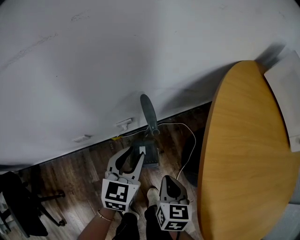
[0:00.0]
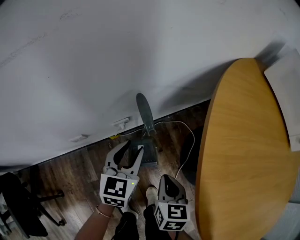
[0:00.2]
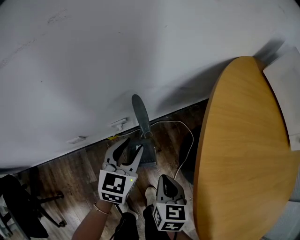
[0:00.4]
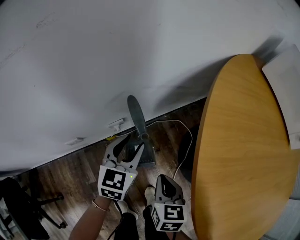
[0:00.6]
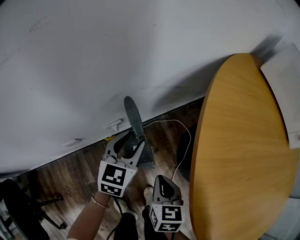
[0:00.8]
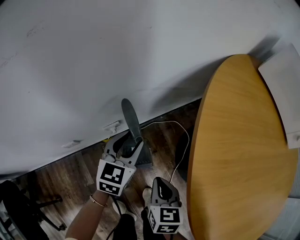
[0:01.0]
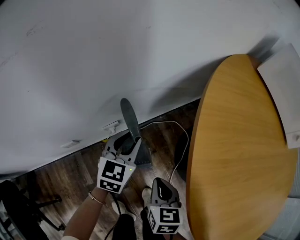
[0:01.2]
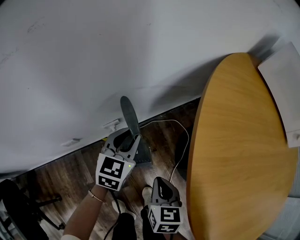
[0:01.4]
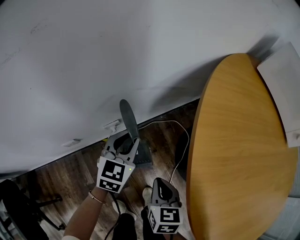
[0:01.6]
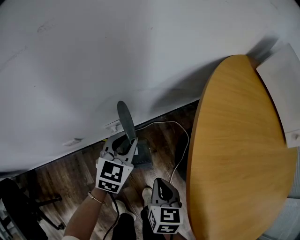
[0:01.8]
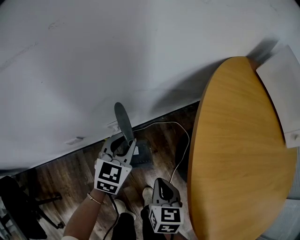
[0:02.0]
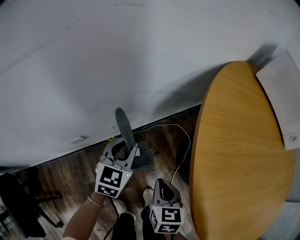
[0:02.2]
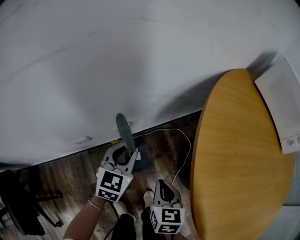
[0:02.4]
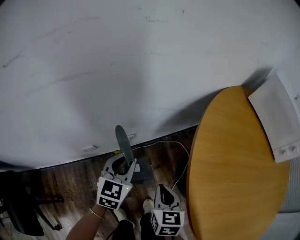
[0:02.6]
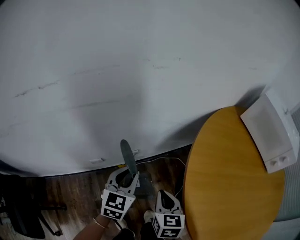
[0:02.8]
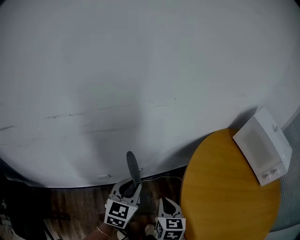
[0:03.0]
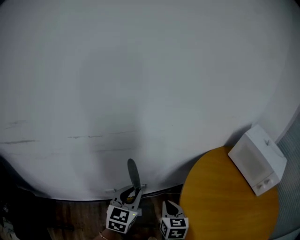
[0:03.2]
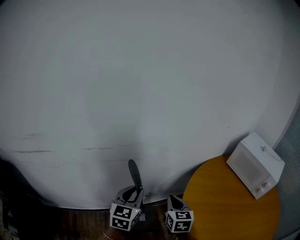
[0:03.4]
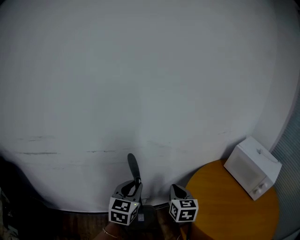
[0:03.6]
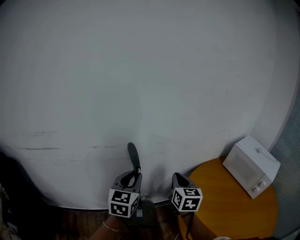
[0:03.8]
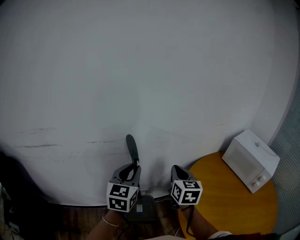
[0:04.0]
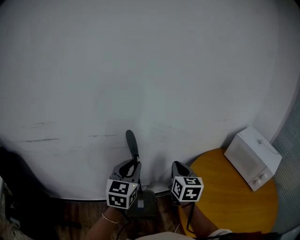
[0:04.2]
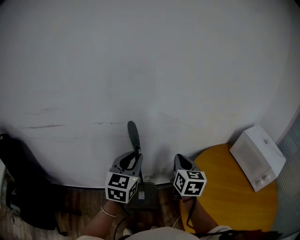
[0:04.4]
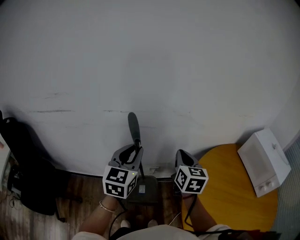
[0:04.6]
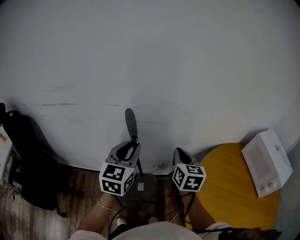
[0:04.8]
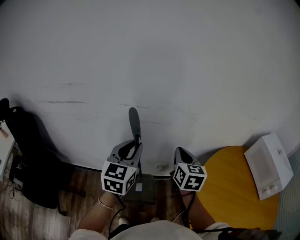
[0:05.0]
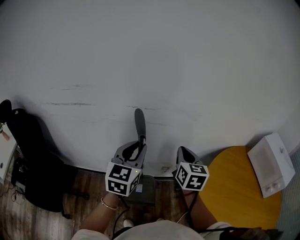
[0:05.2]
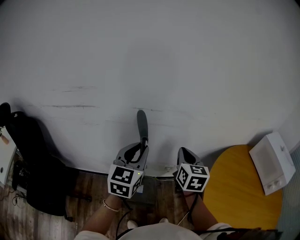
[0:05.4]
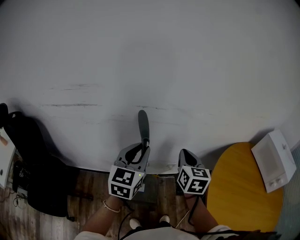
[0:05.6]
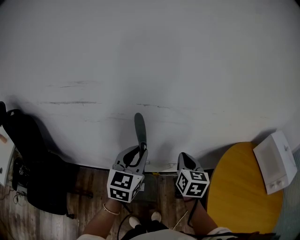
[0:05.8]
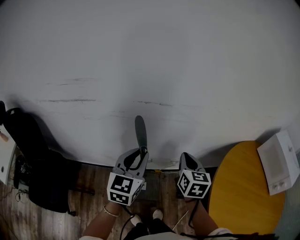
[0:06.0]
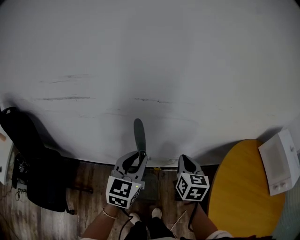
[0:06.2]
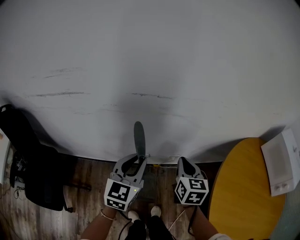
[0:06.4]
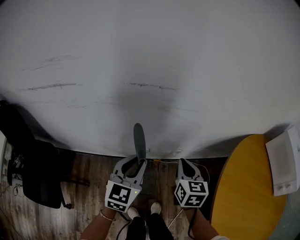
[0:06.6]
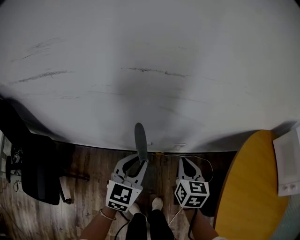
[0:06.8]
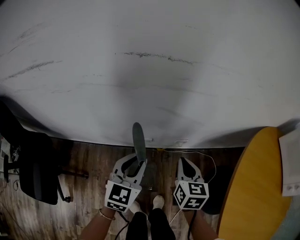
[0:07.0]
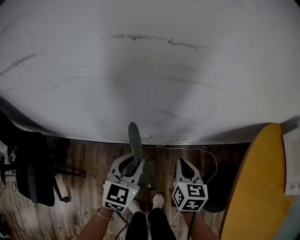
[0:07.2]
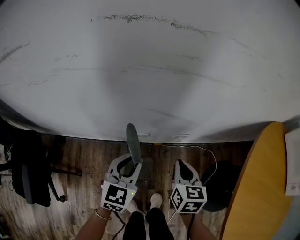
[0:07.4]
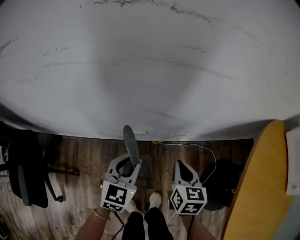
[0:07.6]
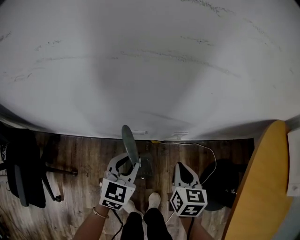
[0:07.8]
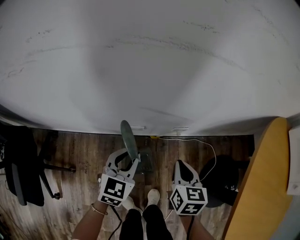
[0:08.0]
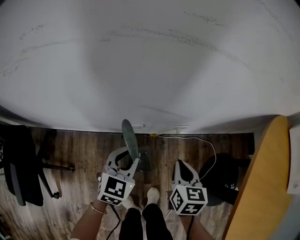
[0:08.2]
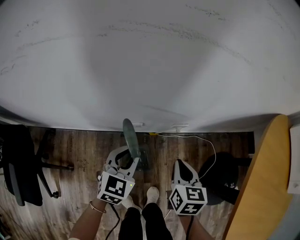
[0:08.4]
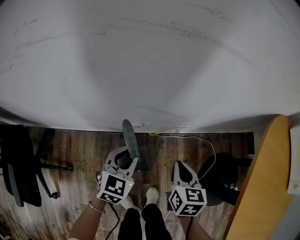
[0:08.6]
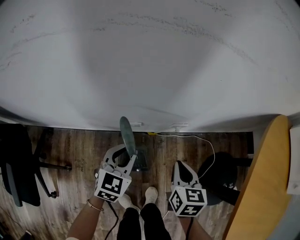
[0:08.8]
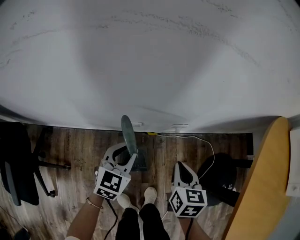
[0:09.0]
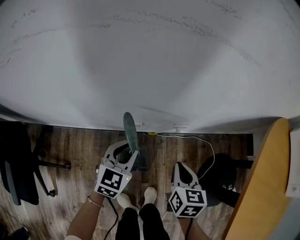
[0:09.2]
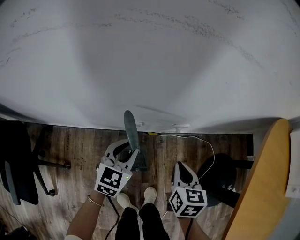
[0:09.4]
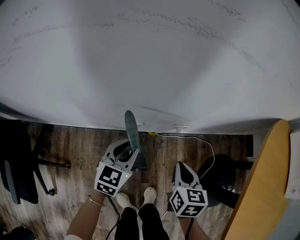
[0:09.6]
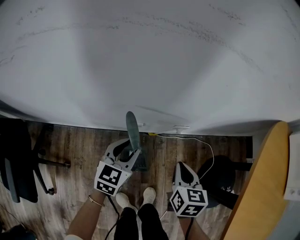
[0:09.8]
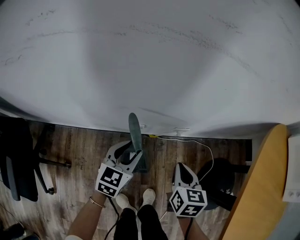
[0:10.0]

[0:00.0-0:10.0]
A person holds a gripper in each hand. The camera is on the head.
0:00.0 to 0:01.4: The left gripper goes approximately 10 cm forward.
0:01.4 to 0:02.8: The left gripper is displaced upward and backward by approximately 20 cm. The right gripper travels upward by approximately 15 cm.
0:02.8 to 0:04.2: The two grippers go roughly 30 cm upward. The right gripper rotates some 20 degrees. Meanwhile the left gripper turns by roughly 20 degrees.
0:04.2 to 0:05.8: The two grippers go approximately 20 cm to the left.
0:05.8 to 0:07.2: Both grippers travel together downward, roughly 25 cm.
0:07.2 to 0:08.6: The grippers both shift downward by about 10 cm.
0:08.6 to 0:10.0: The left gripper opens.

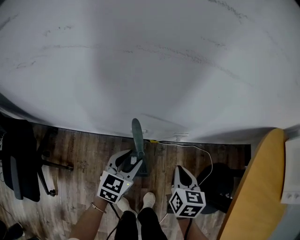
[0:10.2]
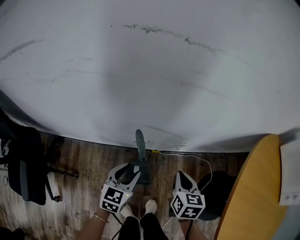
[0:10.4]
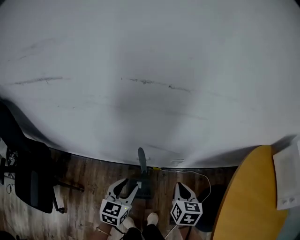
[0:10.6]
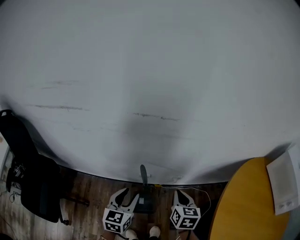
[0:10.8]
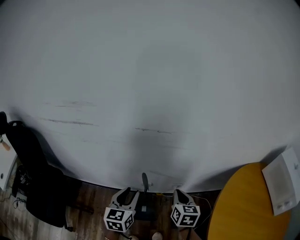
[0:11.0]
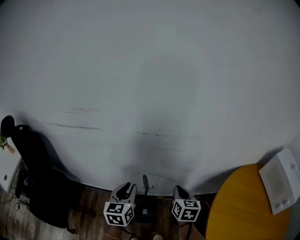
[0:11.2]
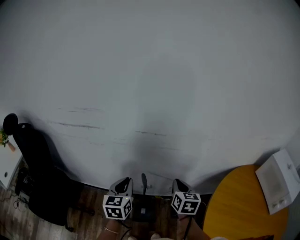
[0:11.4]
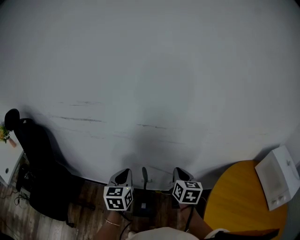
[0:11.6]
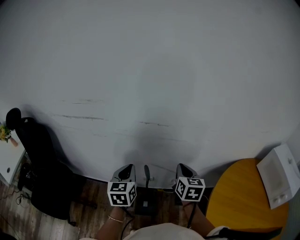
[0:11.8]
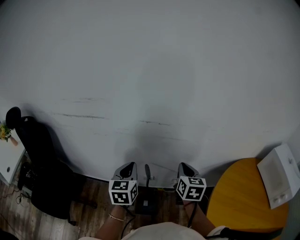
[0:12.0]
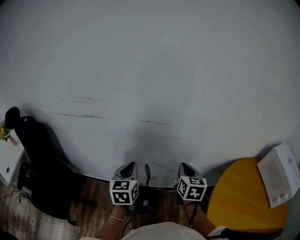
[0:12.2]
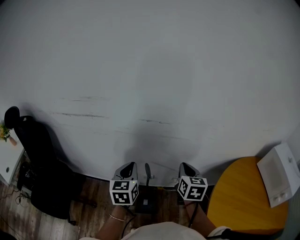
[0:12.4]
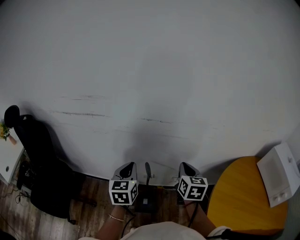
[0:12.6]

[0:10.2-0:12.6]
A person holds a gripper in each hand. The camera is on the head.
0:10.2 to 0:11.4: The grippers both shift upward by roughly 30 cm. The left gripper turns by roughly 30 degrees, and closes.
0:11.4 to 0:12.6: The grippers stay close to where they were, moving slightly.

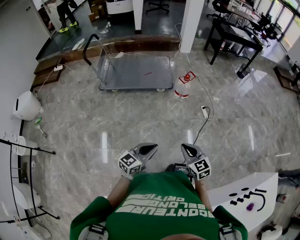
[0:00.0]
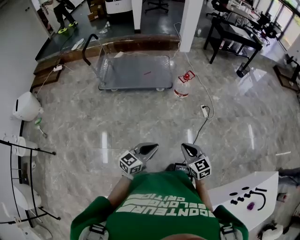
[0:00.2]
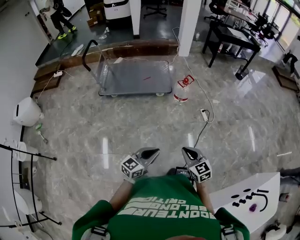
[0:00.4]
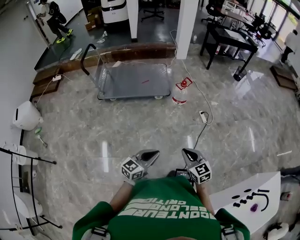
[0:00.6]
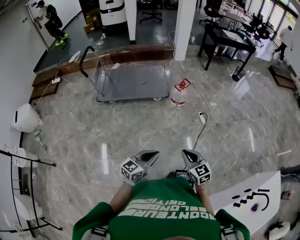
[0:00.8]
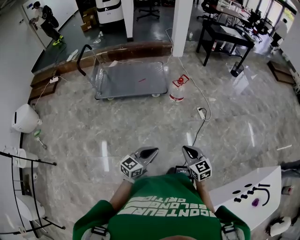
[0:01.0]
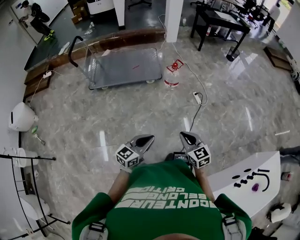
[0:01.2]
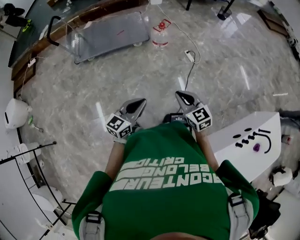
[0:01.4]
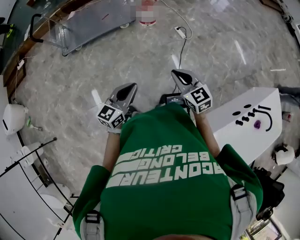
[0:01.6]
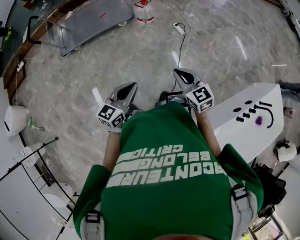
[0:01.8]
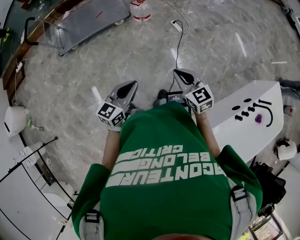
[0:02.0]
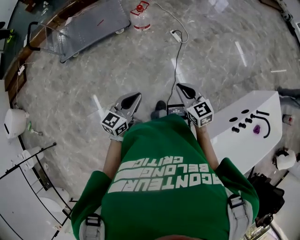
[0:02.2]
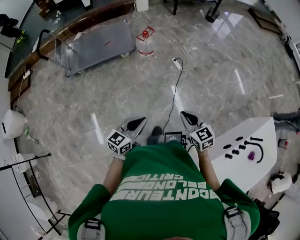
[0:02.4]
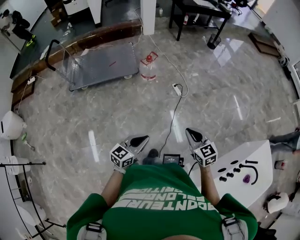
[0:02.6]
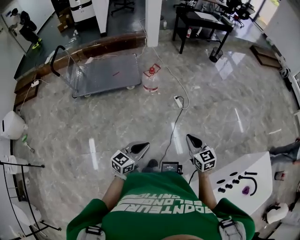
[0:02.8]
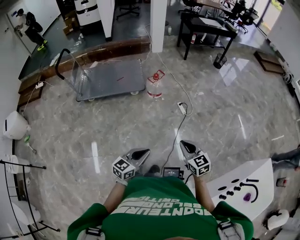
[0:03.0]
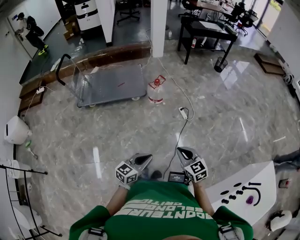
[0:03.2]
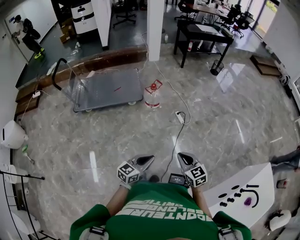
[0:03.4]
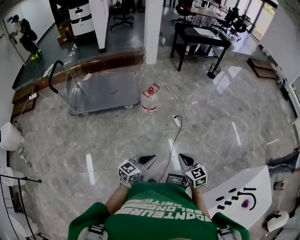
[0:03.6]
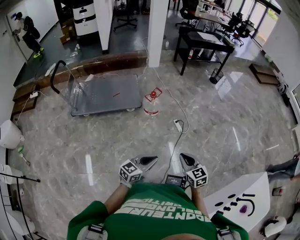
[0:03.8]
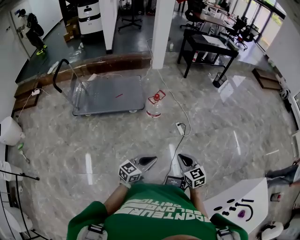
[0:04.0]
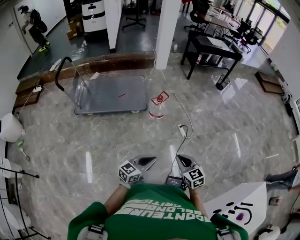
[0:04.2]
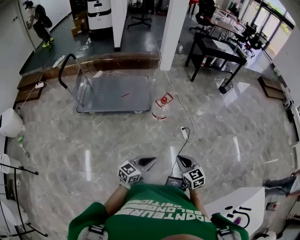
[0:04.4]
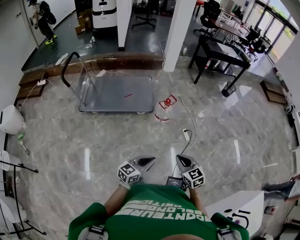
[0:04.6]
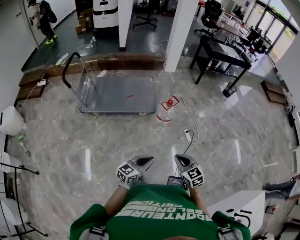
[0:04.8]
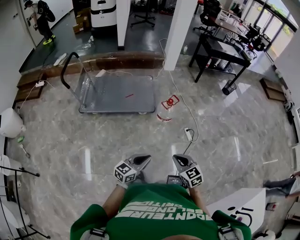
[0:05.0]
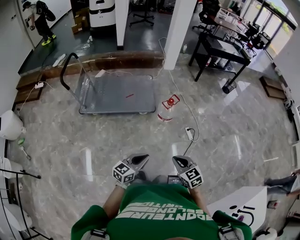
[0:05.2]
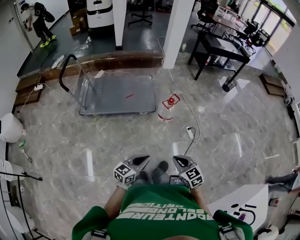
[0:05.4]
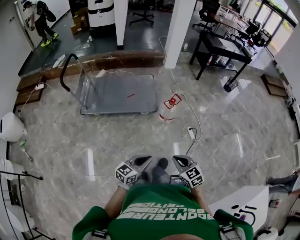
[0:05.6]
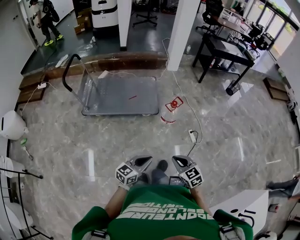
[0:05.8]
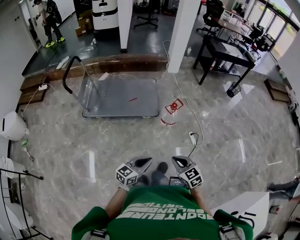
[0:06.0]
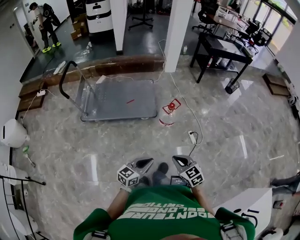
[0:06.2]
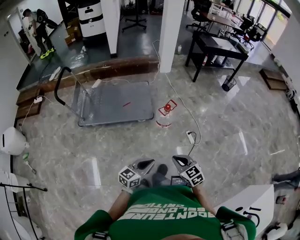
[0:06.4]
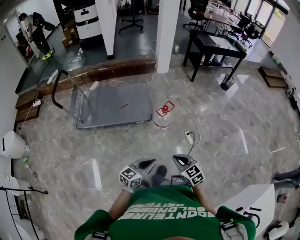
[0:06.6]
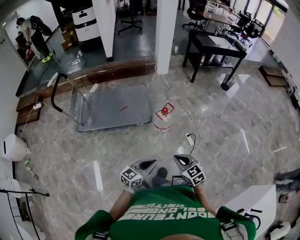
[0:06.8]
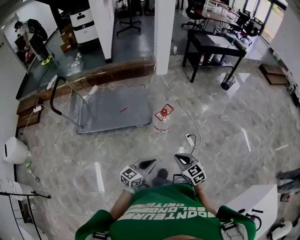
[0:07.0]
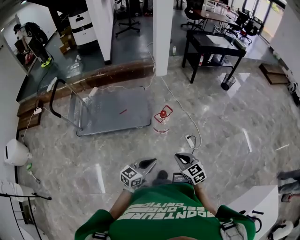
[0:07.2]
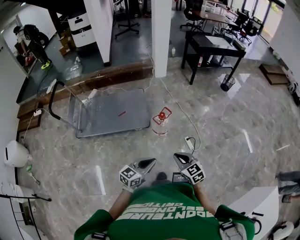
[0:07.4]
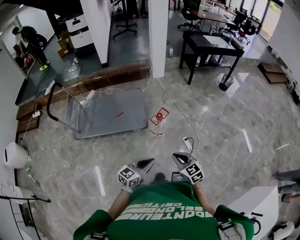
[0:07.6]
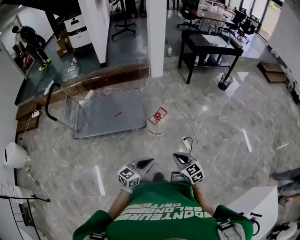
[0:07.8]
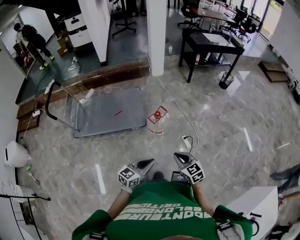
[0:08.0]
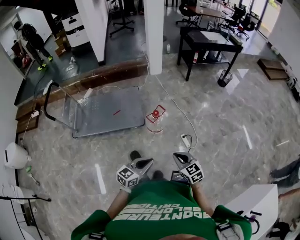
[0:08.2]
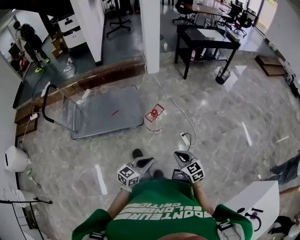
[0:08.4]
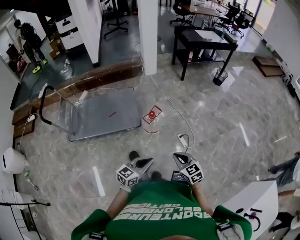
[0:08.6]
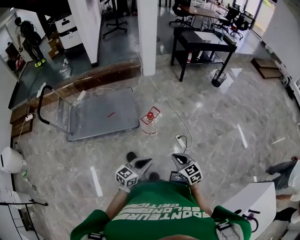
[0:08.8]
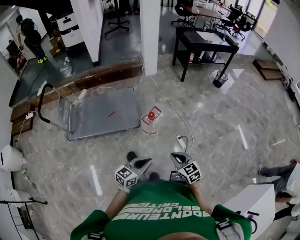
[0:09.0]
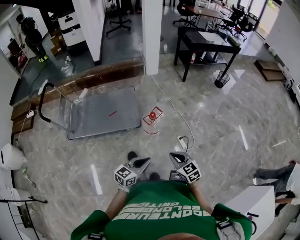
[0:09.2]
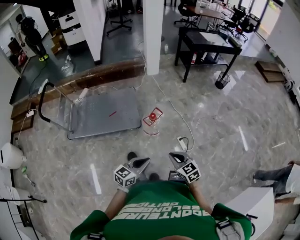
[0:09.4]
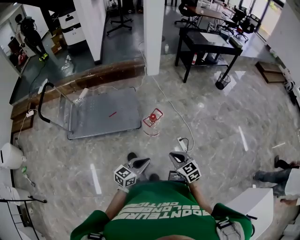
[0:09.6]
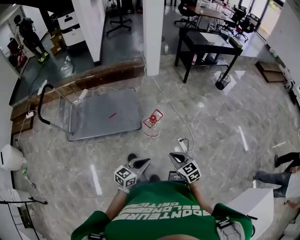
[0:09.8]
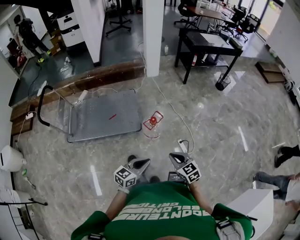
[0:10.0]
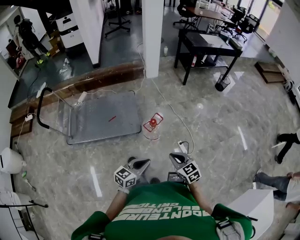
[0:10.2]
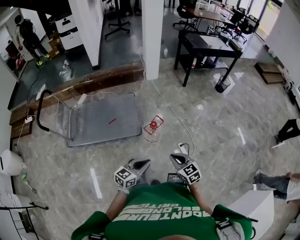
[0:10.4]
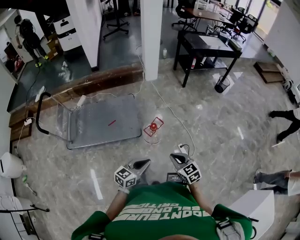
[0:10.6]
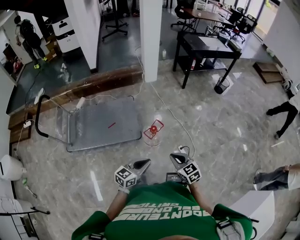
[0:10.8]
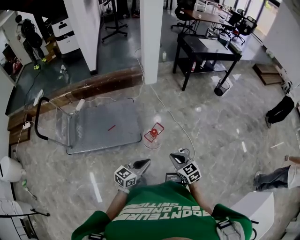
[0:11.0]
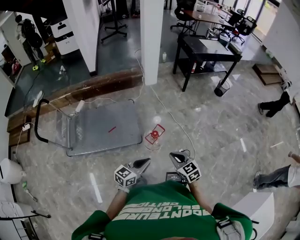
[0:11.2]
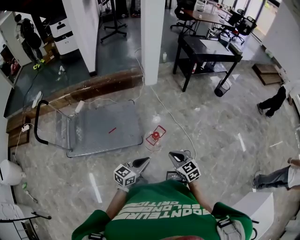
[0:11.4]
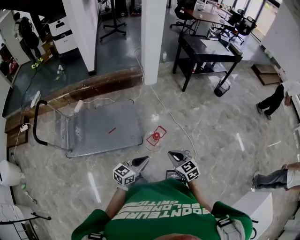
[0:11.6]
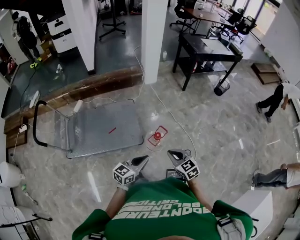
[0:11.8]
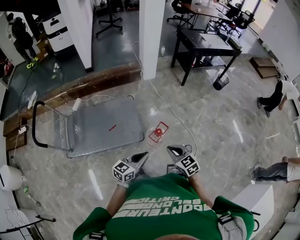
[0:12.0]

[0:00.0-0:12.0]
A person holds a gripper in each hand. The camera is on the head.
0:00.0 to 0:01.6: The right gripper is displaced to the right by some 5 cm.
0:01.6 to 0:03.0: Both grippers move to the right, about 15 cm.
0:03.0 to 0:04.4: Both grippers move forward and to the left, roughly 15 cm.
0:04.4 to 0:06.0: The two grippers go about 15 cm to the left and forward.
0:06.0 to 0:07.6: Both grippers move forward and to the right, approximately 20 cm.
0:07.6 to 0:09.0: The grippers move only a little.
0:09.0 to 0:10.4: Both grippers move forward, approximately 10 cm.
0:10.4 to 0:12.0: The grippers both shift forward and to the left by approximately 20 cm.
